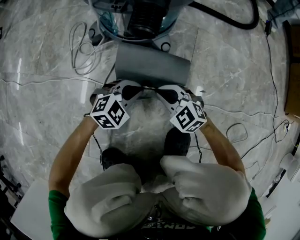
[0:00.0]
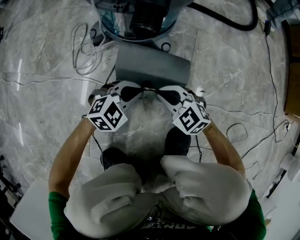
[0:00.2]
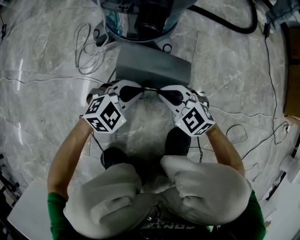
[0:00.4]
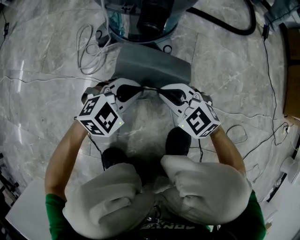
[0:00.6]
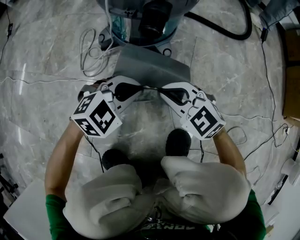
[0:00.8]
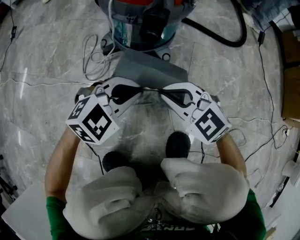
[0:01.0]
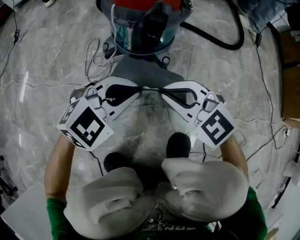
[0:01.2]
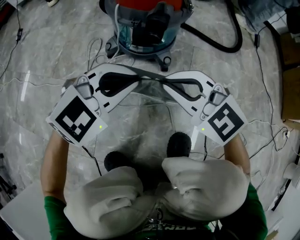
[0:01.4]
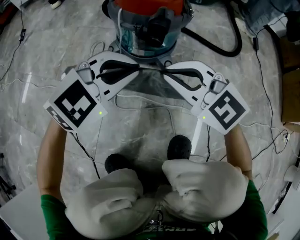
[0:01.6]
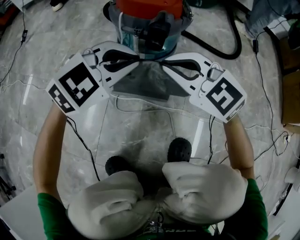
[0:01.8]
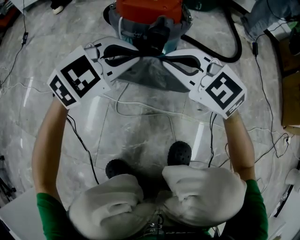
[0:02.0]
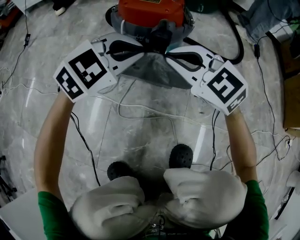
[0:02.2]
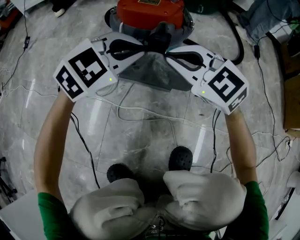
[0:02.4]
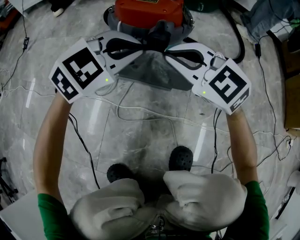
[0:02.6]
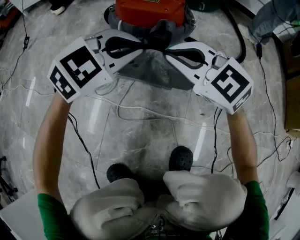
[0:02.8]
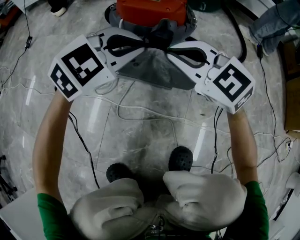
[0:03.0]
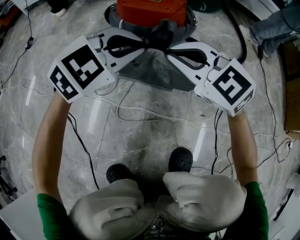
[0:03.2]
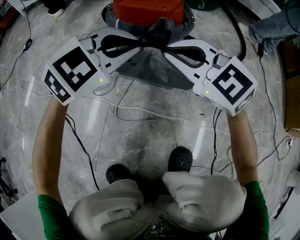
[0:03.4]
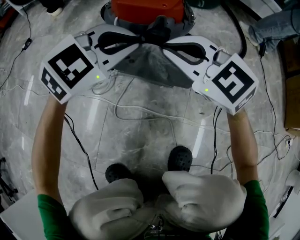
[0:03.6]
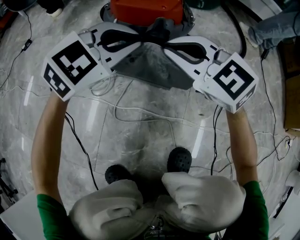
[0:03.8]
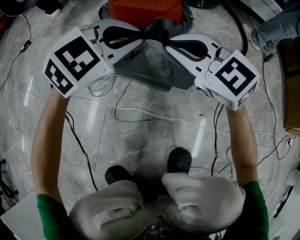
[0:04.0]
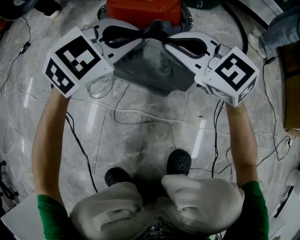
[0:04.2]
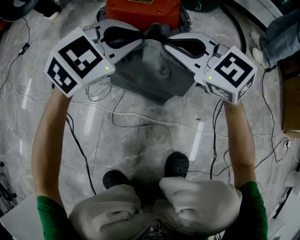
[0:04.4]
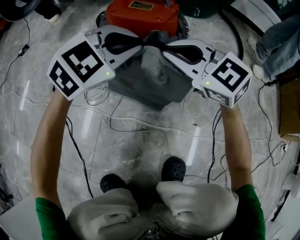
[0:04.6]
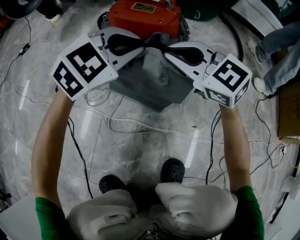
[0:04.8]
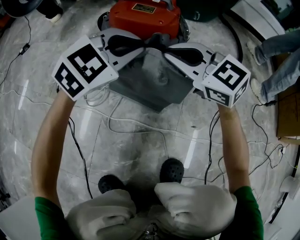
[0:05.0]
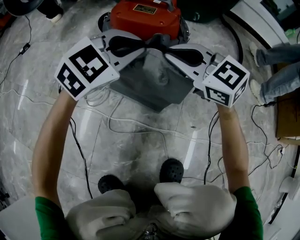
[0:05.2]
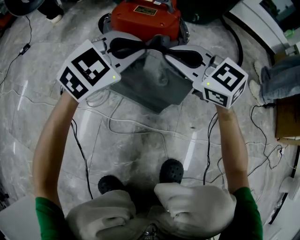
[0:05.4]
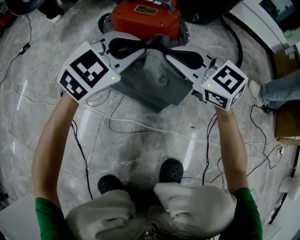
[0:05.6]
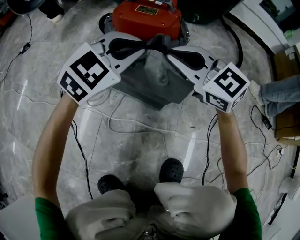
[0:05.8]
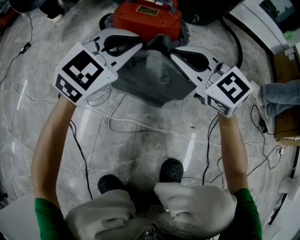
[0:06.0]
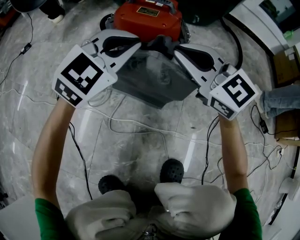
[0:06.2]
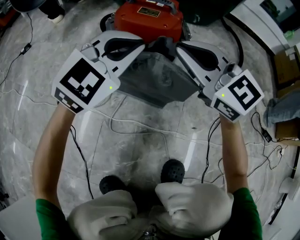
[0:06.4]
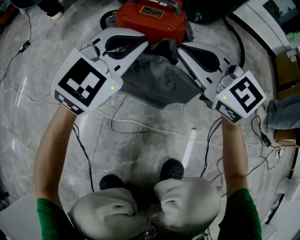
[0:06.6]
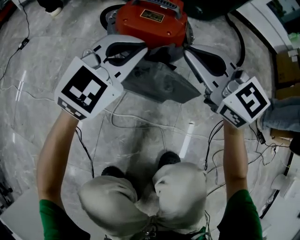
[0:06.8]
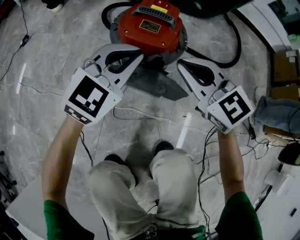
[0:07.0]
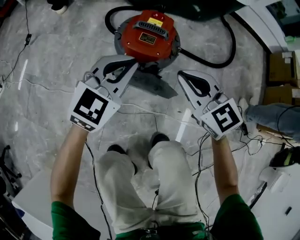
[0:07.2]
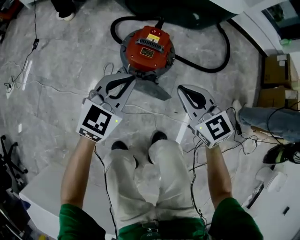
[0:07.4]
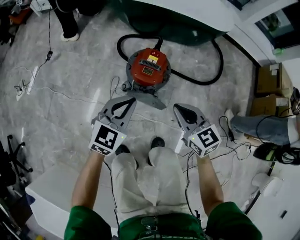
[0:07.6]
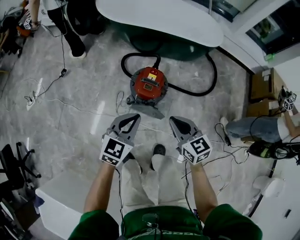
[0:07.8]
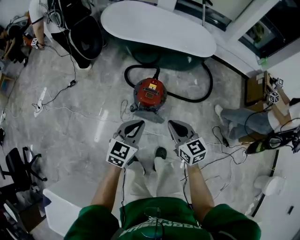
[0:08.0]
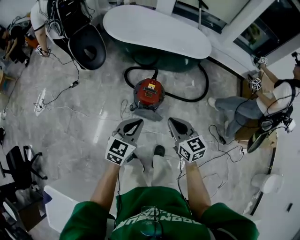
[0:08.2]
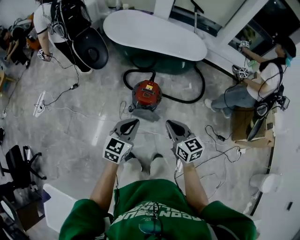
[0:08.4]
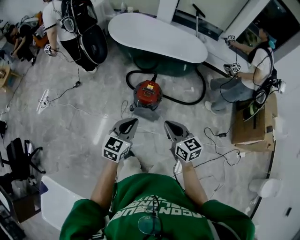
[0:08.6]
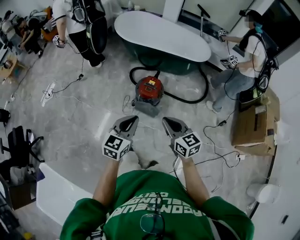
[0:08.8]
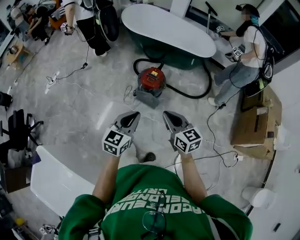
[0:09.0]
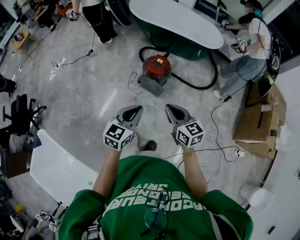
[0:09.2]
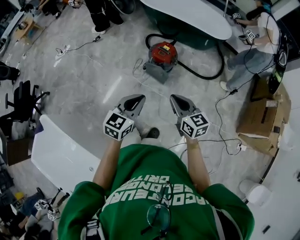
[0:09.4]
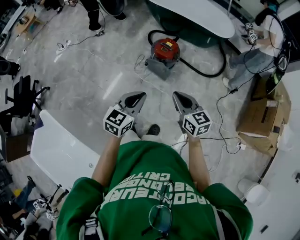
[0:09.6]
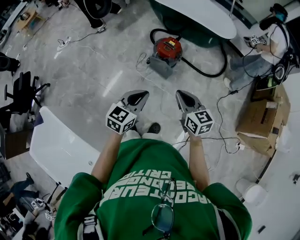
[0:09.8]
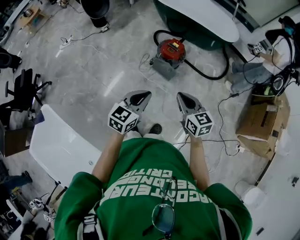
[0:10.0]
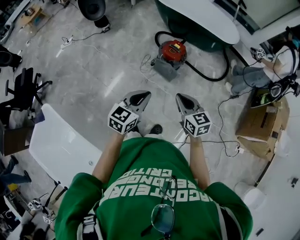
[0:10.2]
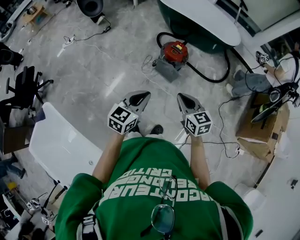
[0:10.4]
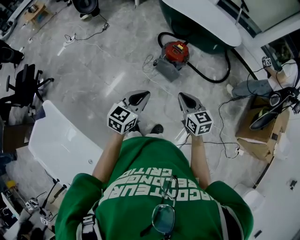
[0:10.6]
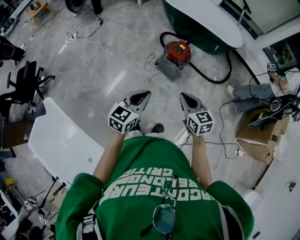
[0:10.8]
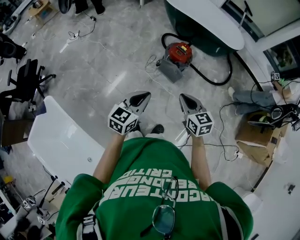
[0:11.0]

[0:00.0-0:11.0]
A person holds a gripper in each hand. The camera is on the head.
0.0 to 1.6 s: Both grippers move upward, approximately 30 cm.
1.6 to 3.2 s: The grippers both shift forward by roughly 10 cm.
3.2 to 4.8 s: The right gripper shifts by about 5 cm. The left gripper changes place by roughly 5 cm.
4.8 to 6.2 s: The grippers move only a little.
6.2 to 7.8 s: The grippers both shift upward by some 40 cm. The left gripper changes its angle by some 30 degrees. The right gripper rotates approximately 30 degrees.
7.8 to 9.4 s: Both grippers travel together backward and upward, some 35 cm.
9.4 to 11.0 s: The right gripper moves to the left, some 10 cm. Meanwhile the left gripper heads to the left and backward, covering about 15 cm.

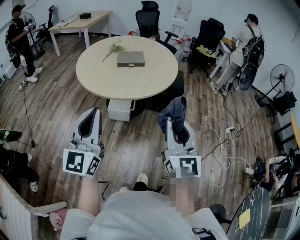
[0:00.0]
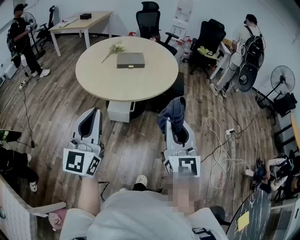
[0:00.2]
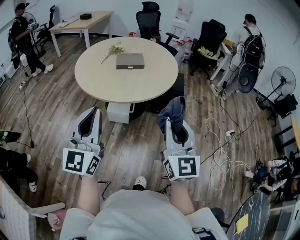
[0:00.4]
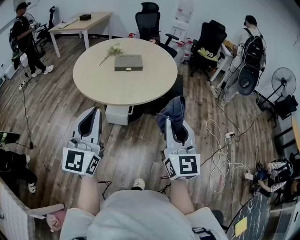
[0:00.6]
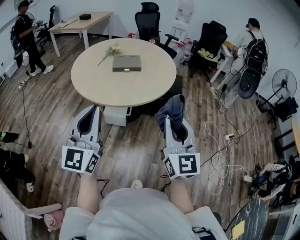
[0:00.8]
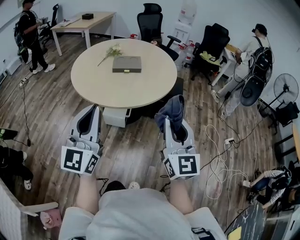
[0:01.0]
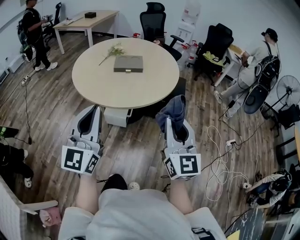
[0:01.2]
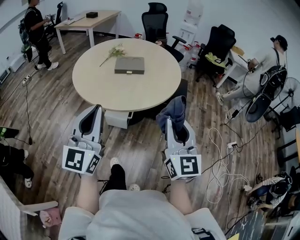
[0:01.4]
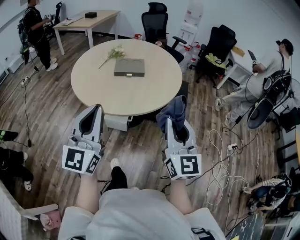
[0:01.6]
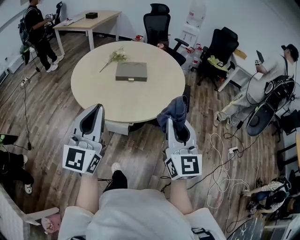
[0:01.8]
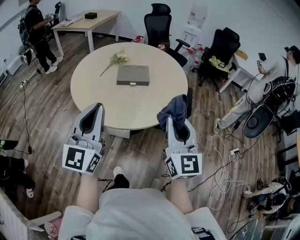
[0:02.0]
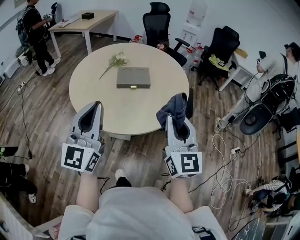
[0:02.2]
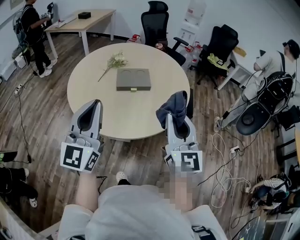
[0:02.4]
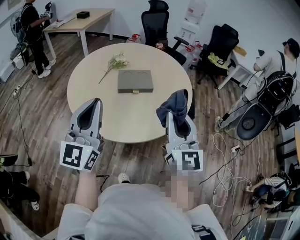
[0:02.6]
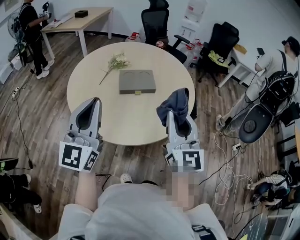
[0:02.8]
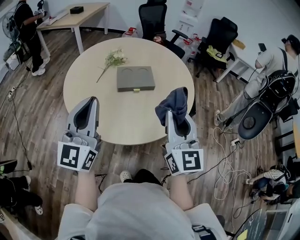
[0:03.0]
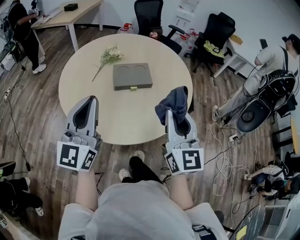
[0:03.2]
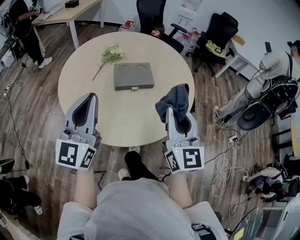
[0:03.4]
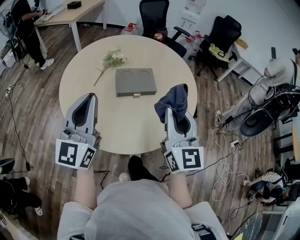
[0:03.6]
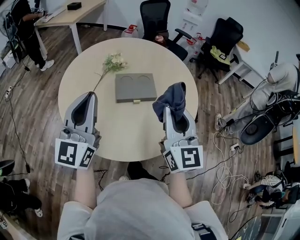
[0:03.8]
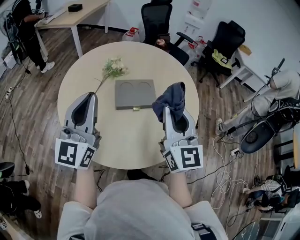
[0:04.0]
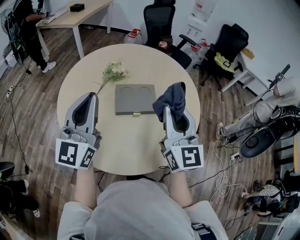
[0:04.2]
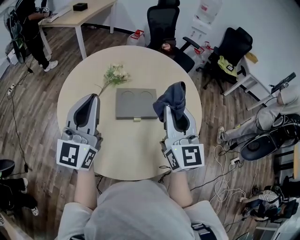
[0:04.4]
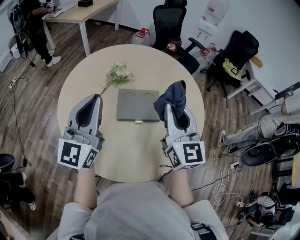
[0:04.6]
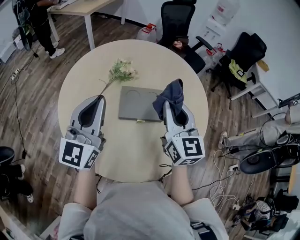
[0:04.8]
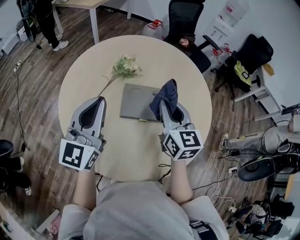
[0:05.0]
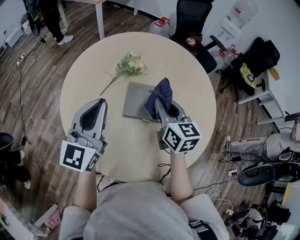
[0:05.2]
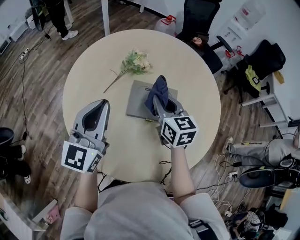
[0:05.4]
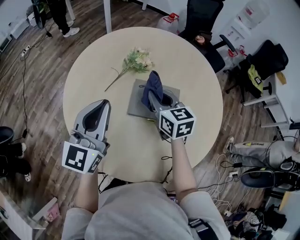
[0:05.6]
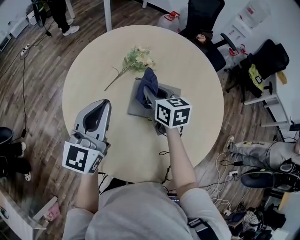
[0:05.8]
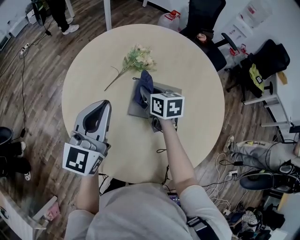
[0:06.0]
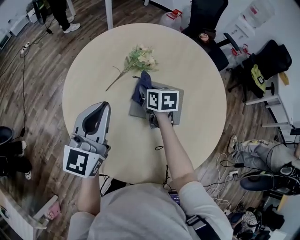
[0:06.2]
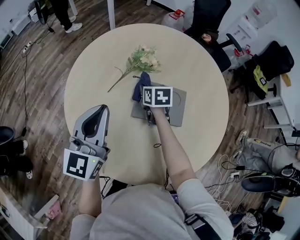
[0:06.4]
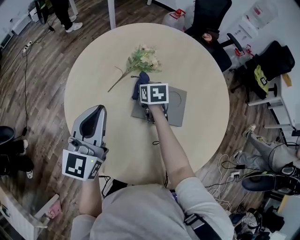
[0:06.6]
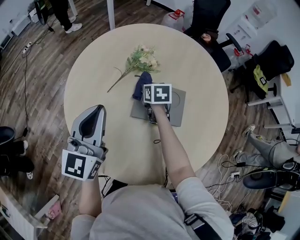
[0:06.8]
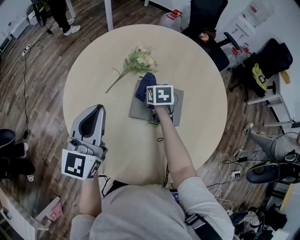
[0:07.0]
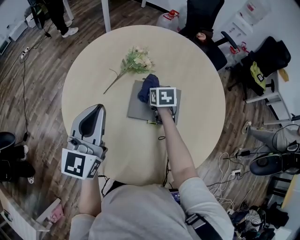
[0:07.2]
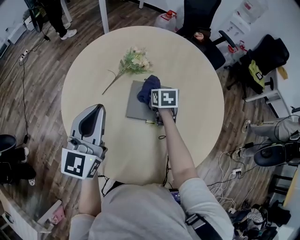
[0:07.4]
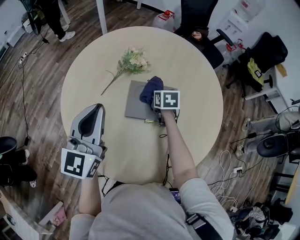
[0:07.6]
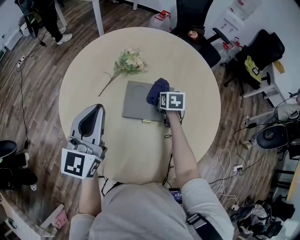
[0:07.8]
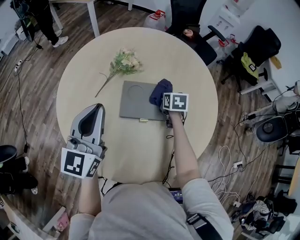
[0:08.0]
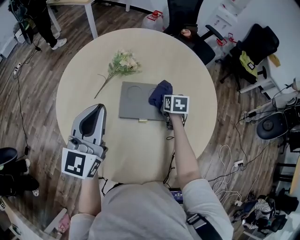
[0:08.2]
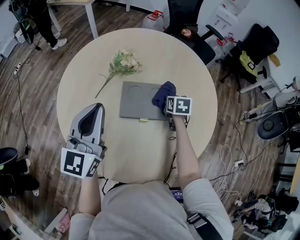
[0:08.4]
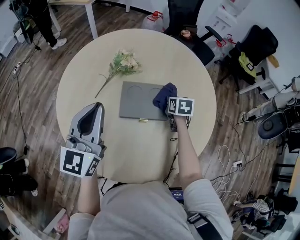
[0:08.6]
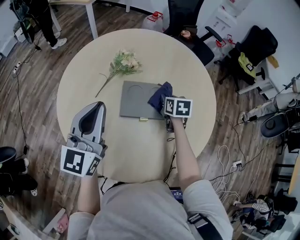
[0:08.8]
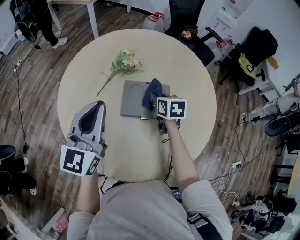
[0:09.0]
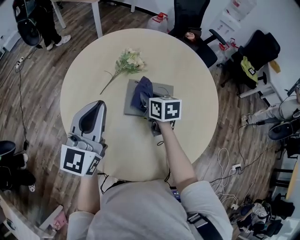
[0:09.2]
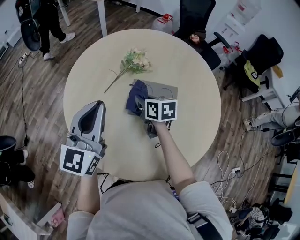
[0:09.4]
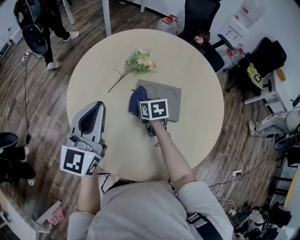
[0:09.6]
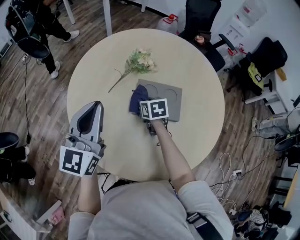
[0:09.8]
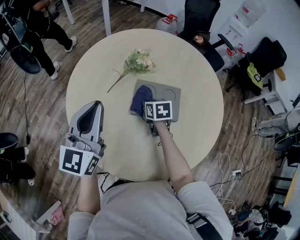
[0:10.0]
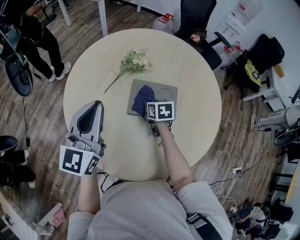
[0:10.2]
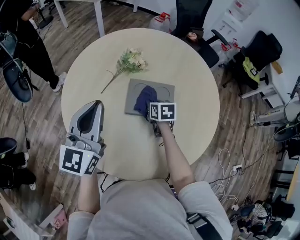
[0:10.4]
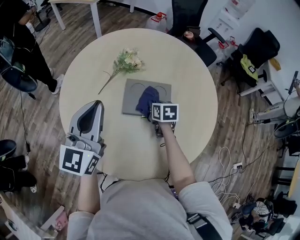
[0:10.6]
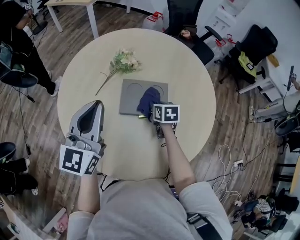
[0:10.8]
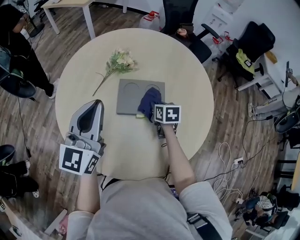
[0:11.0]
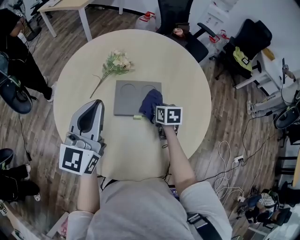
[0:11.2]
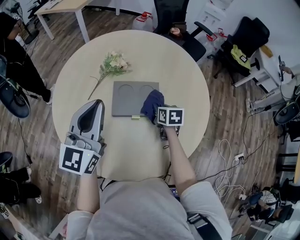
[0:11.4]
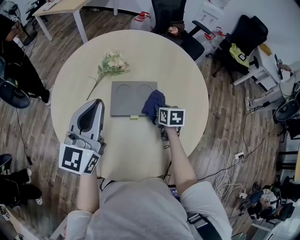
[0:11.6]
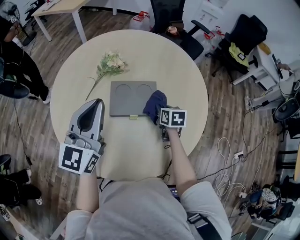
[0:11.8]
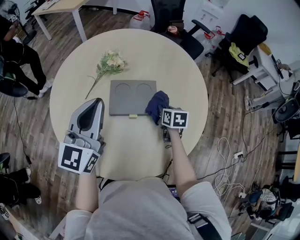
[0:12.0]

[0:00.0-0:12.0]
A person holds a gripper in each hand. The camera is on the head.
0.0 to 1.6 s: The left gripper shifts about 15 cm forward and to the right. The right gripper shifts about 15 cm forward.
1.6 to 3.0 s: Both grippers move forward and to the left, approximately 25 cm.
3.0 to 4.4 s: Both grippers travel together forward, approximately 20 cm.
4.4 to 6.0 s: The left gripper shifts roughly 10 cm downward and forward. The right gripper shifts some 35 cm downward, forward and to the left, and tips its fingers downward by roughly 40 degrees.
6.0 to 7.6 s: The right gripper travels to the right and downward by about 10 cm, and swivels approximately 20 degrees.
7.6 to 9.0 s: The right gripper goes some 5 cm upward, and goes to the right and returns, approximately 10 cm each way.
9.0 to 10.4 s: The right gripper shifts approximately 5 cm downward, and moves approximately 10 cm to the left and comes back.
10.4 to 12.0 s: The left gripper shifts roughly 10 cm to the right. The right gripper goes about 15 cm to the right.

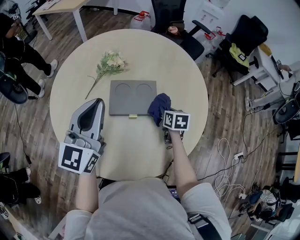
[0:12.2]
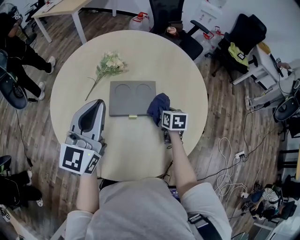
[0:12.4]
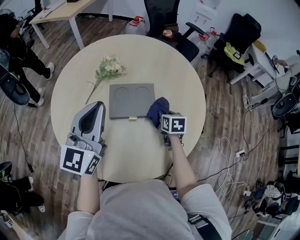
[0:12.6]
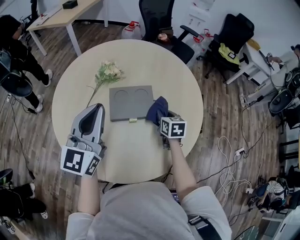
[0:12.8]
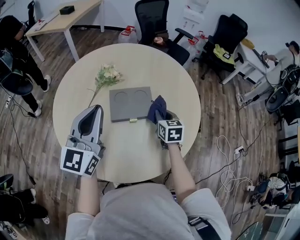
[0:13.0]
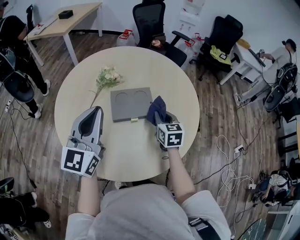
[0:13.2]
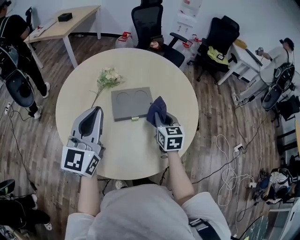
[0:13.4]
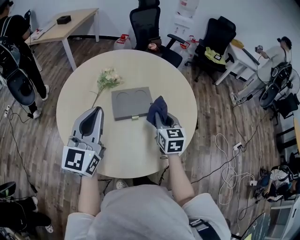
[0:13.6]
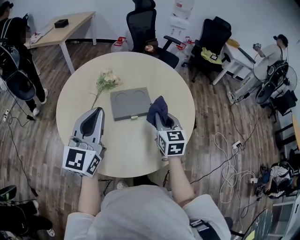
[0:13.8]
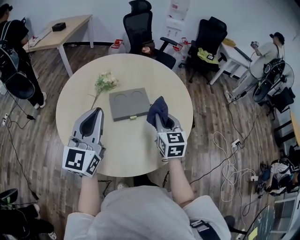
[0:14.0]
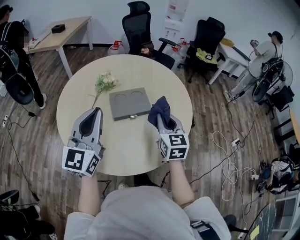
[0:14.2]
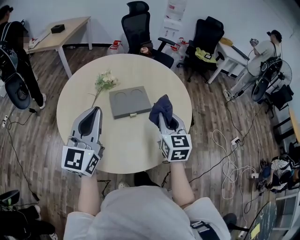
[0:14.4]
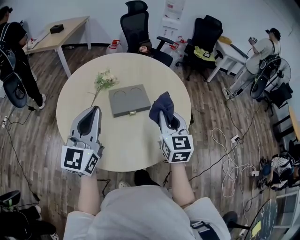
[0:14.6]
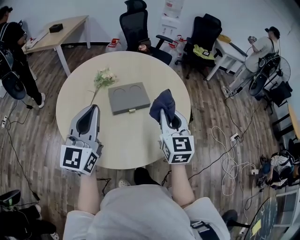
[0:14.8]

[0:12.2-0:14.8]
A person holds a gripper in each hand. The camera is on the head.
12.2 to 13.4 s: The left gripper shifts approximately 10 cm backward, while the right gripper heads upward and backward, covering about 15 cm, and swivels about 30 degrees.
13.4 to 14.8 s: The left gripper shifts some 10 cm backward. The right gripper moves upward and backward, roughly 20 cm, and turns by roughly 20 degrees.
